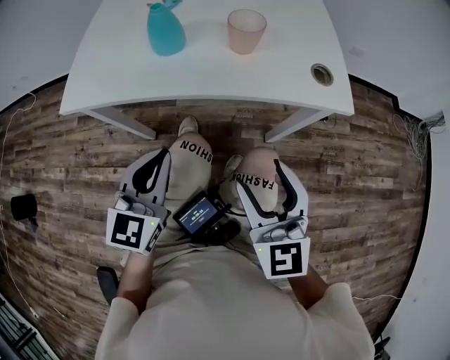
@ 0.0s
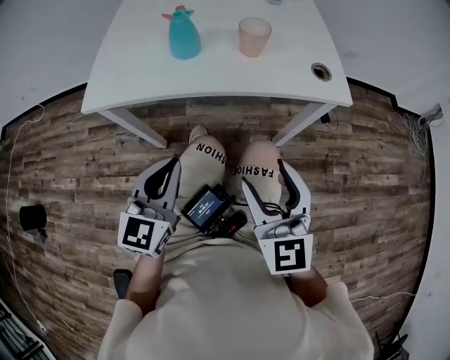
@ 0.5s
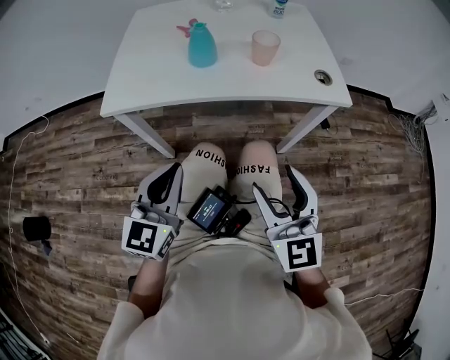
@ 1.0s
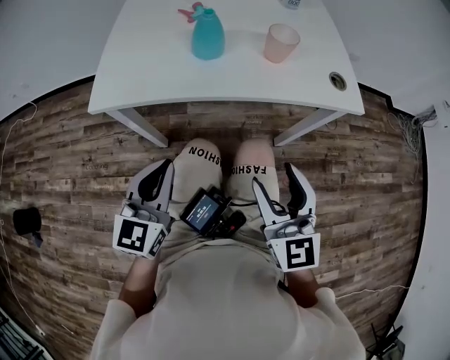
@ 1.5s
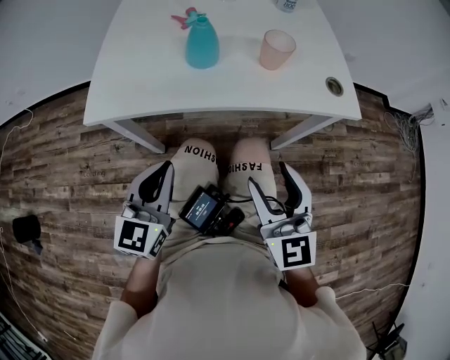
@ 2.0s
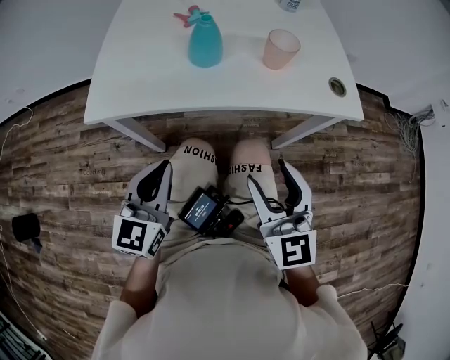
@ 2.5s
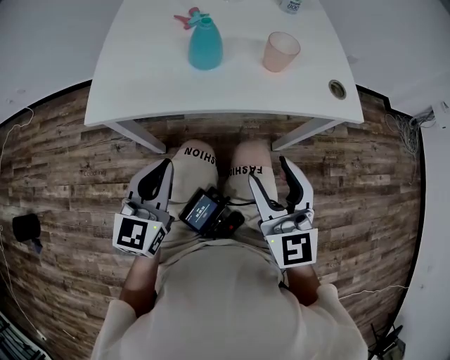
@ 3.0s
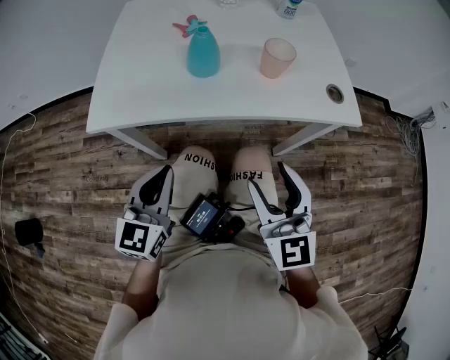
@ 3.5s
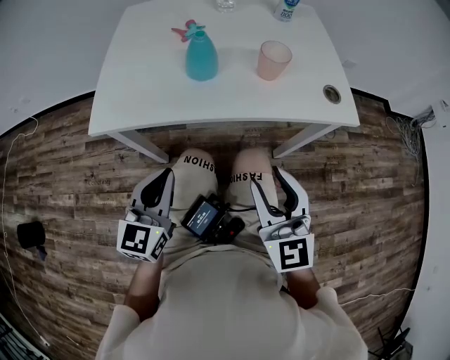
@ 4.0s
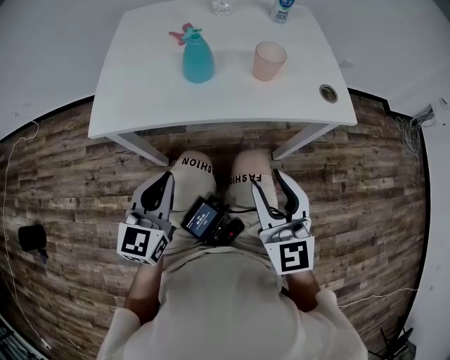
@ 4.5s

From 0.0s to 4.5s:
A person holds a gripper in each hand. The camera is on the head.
From 0.0s to 2.0s: The grippers both shift to the left by about 10 cm.
From 2.0s to 4.5s: The grippers move only a little.

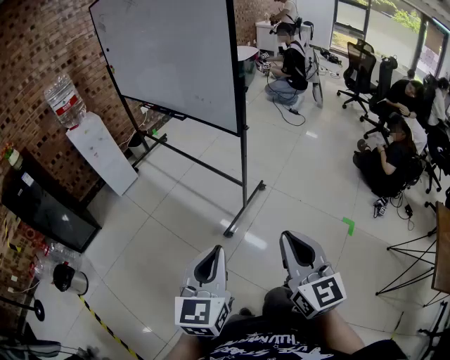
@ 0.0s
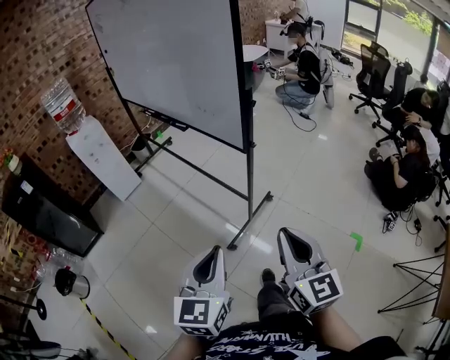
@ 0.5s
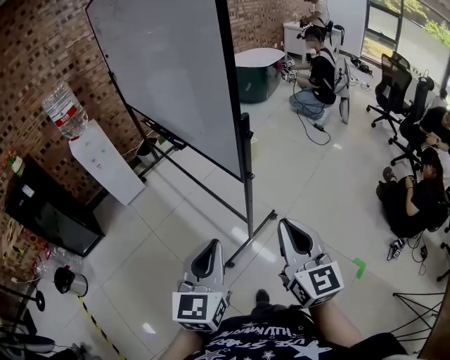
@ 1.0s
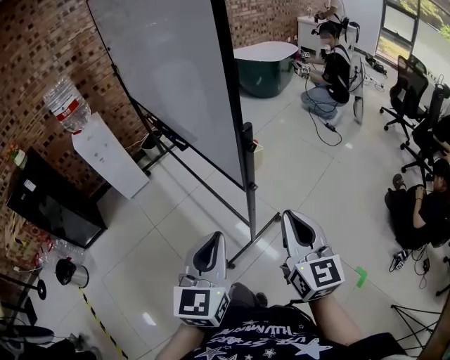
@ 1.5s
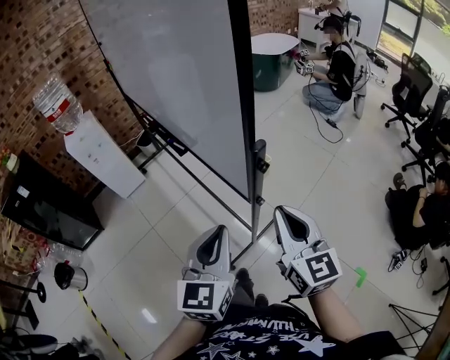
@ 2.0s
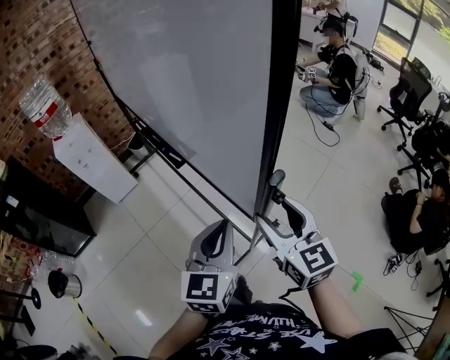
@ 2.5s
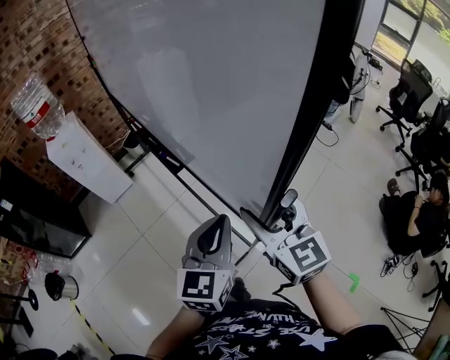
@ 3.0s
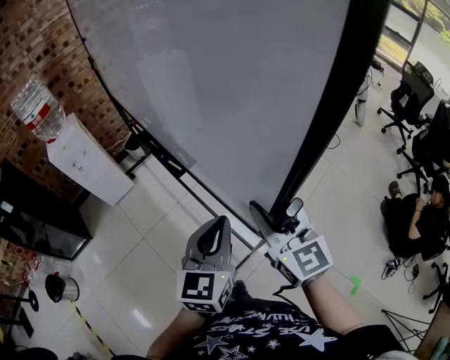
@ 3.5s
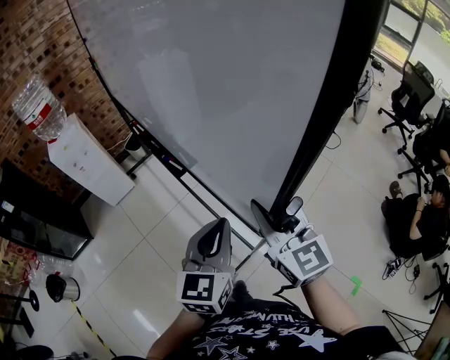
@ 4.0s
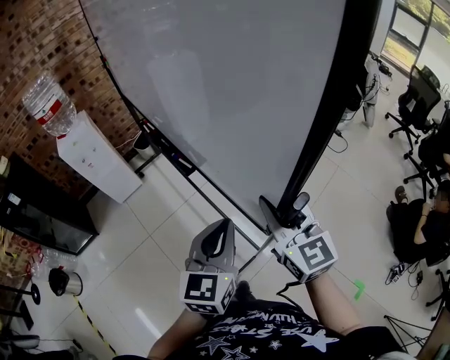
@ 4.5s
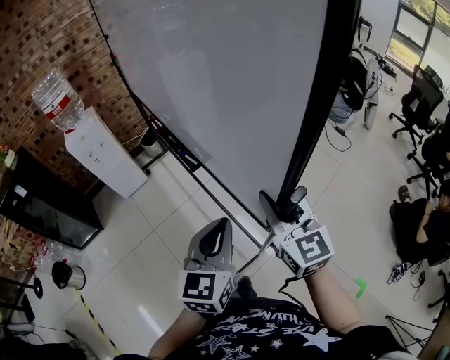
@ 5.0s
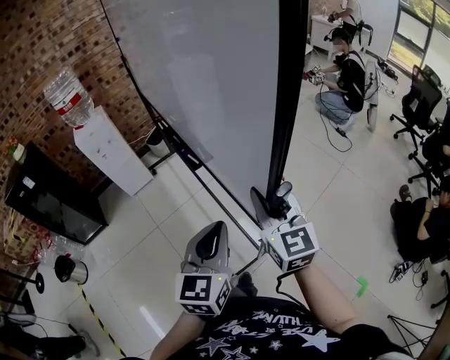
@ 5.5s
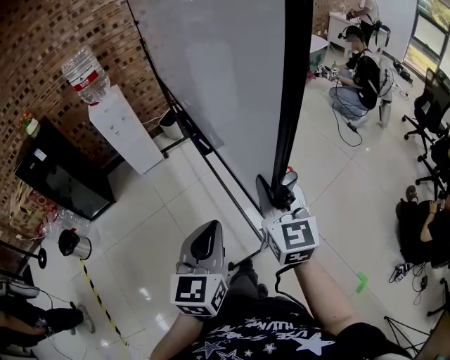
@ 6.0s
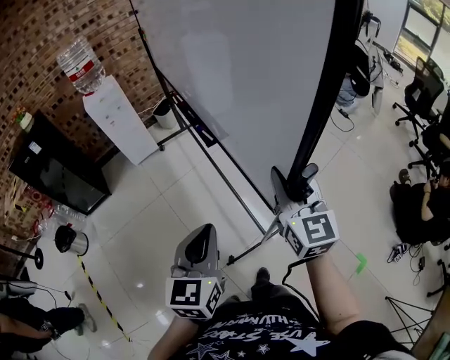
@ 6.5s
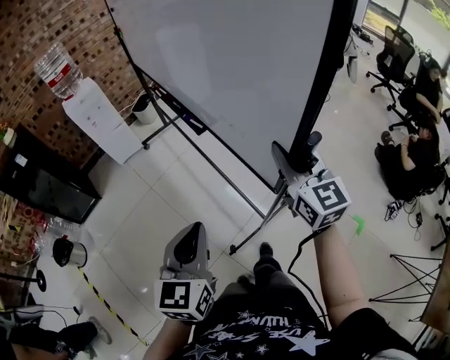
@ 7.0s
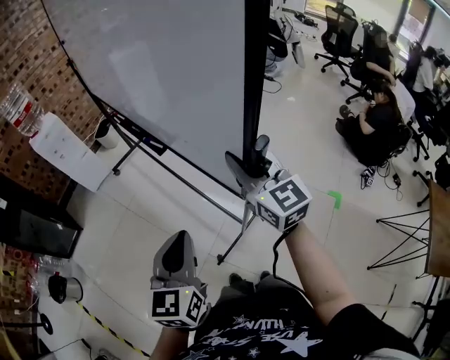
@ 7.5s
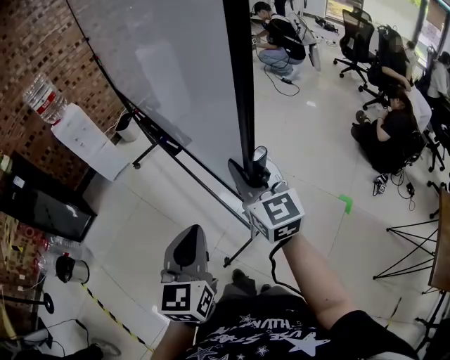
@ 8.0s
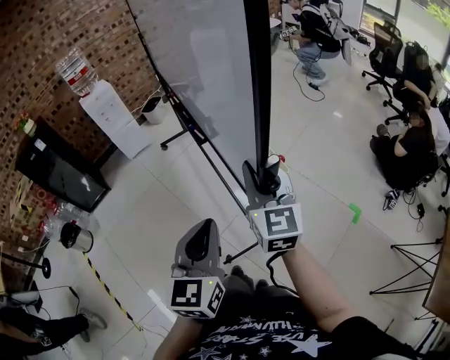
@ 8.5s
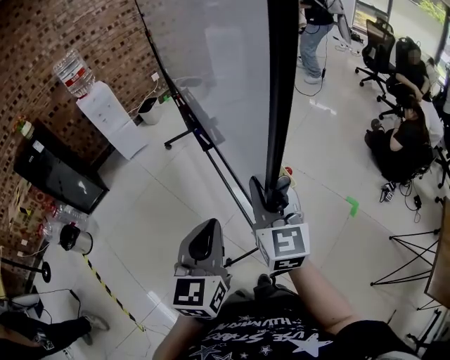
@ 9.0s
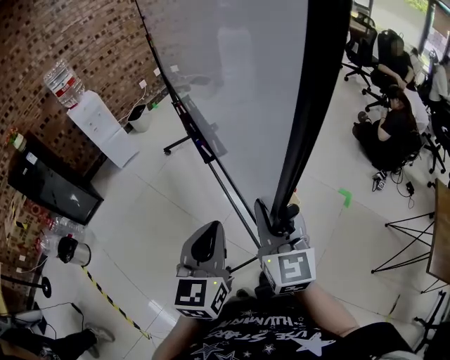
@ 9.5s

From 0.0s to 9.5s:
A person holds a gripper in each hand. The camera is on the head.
From 0.0s to 2.0s: Both grippers travel together forward, approximately 35 cm.
From 2.0s to 4.0s: The right gripper is displaced forward and to the left by approximately 15 cm, and opens and closes again. The left gripper heads forward, covering some 10 cm.
From 4.0s to 5.5s: The right gripper heads backward, covering some 5 cm, while the left gripper shifts approximately 10 cm backward.
From 5.5s to 7.5s: The two grippers go approximately 25 cm backward.
From 7.5s to 9.5s: The left gripper moves backward, some 15 cm. The right gripper heads backward, covering about 25 cm.

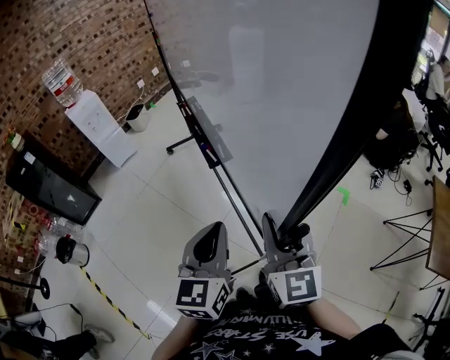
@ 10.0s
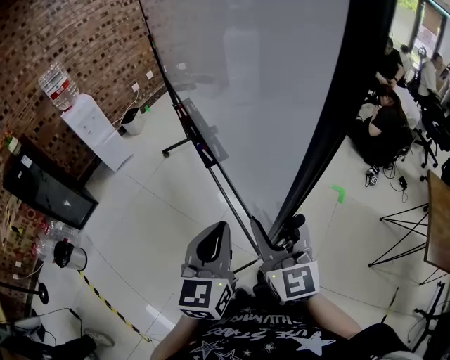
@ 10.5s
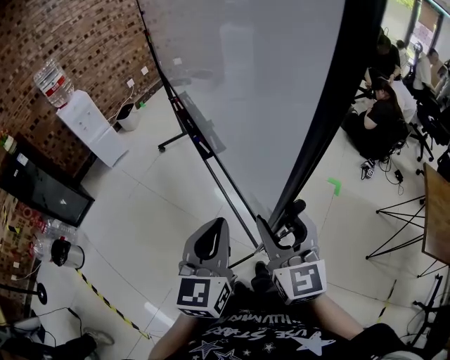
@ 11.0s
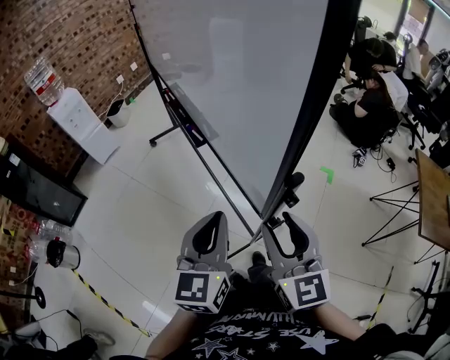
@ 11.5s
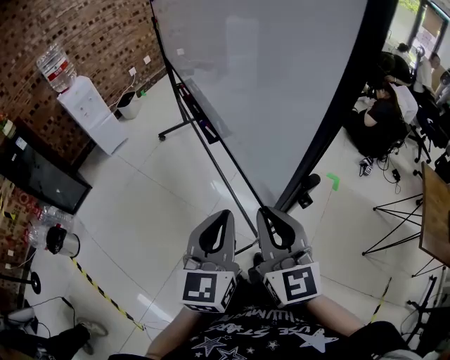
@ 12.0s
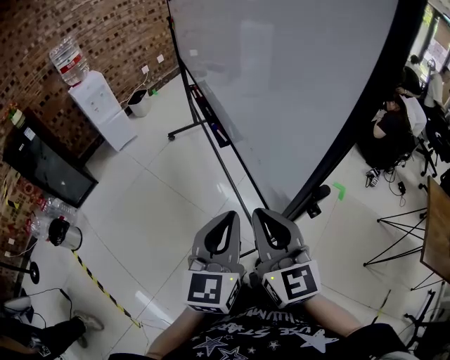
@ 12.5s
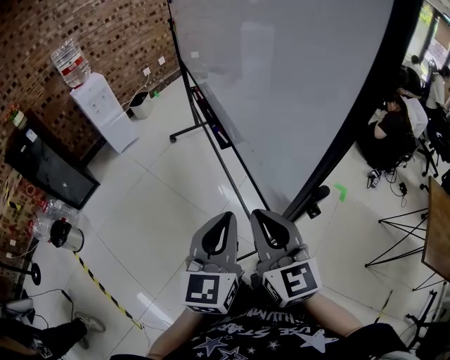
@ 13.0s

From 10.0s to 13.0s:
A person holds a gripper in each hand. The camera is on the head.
From 10.0s to 11.5s: The right gripper goes approximately 10 cm backward.
From 11.5s to 13.0s: The right gripper goes roughly 5 cm to the left, and closes.

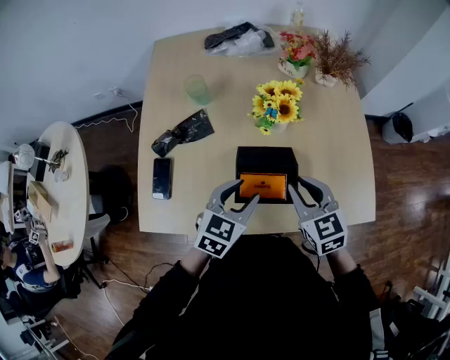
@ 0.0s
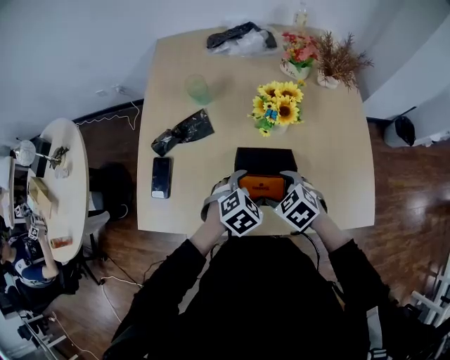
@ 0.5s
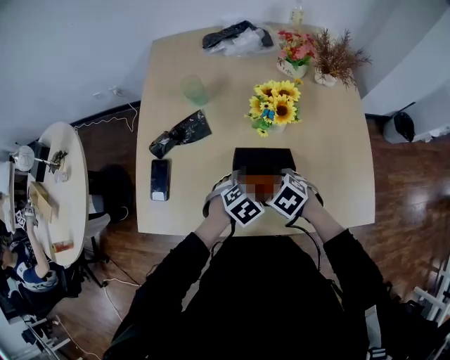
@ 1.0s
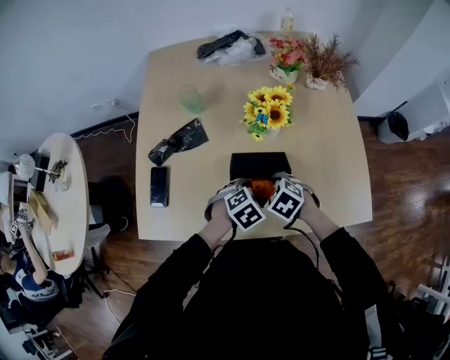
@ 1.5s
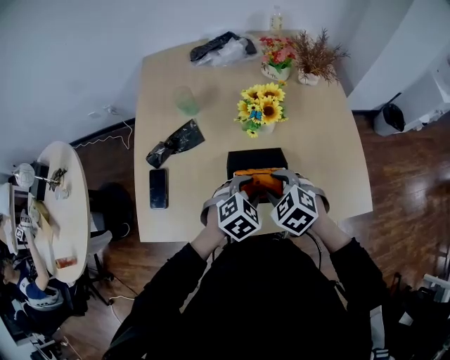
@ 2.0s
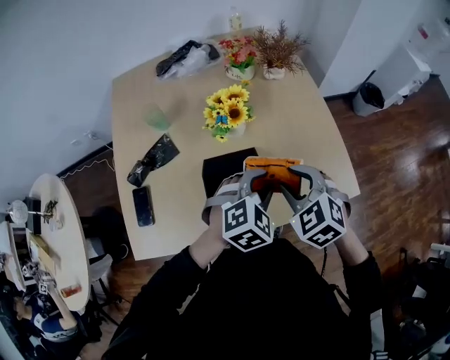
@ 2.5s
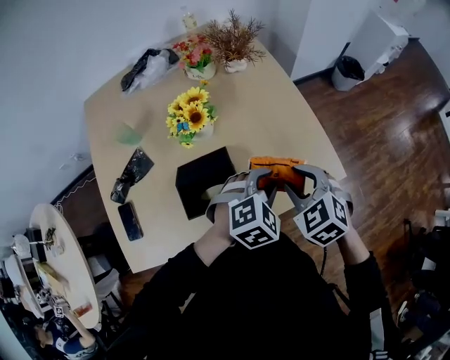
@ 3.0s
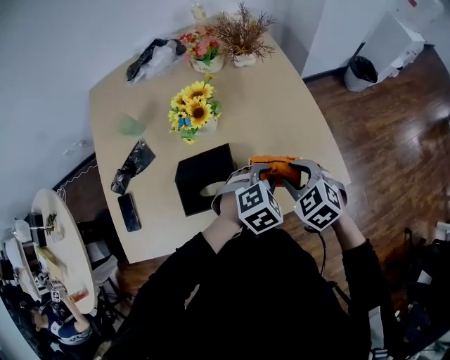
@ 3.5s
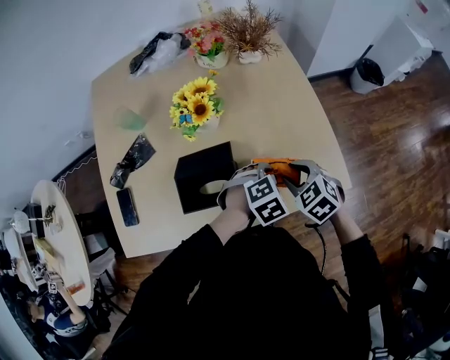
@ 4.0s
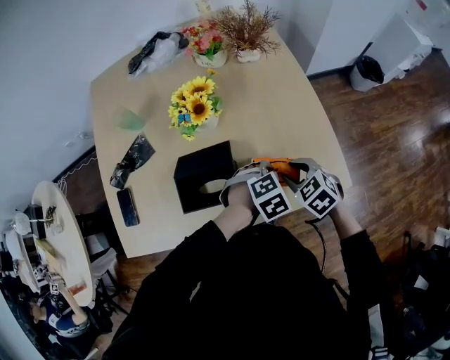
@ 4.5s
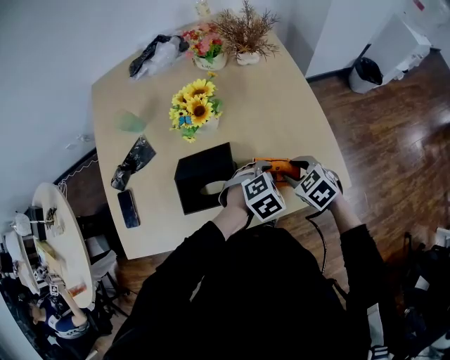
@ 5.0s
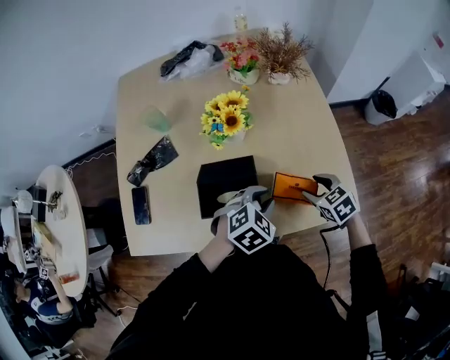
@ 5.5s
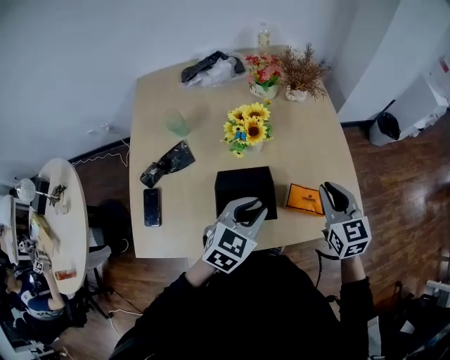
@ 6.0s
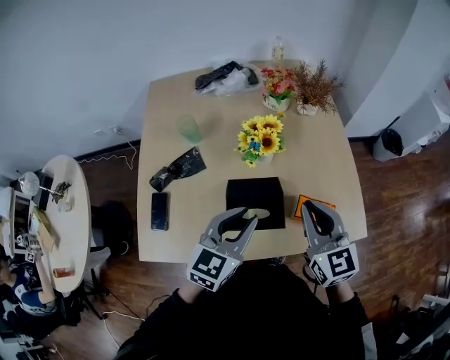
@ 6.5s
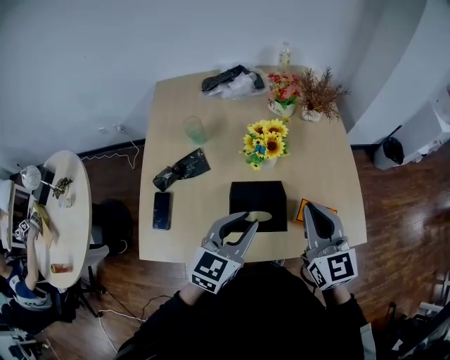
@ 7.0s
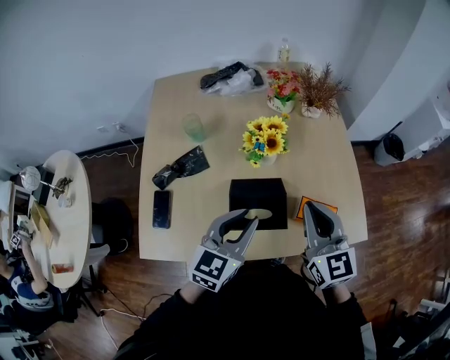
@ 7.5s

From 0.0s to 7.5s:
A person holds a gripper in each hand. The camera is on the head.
From 0.0s to 2.0s: The two grippers go about 5 cm downward. The left gripper swivels roughly 30 degrees, and opens, then closes again. Meanwhile the right gripper changes its angle by approximately 30 degrees, and opens, then closes once more.
From 2.0s to 4.0s: The two grippers go some 20 cm to the right. The left gripper swivels roughly 20 degrees.
From 4.0s to 5.5s: The left gripper goes approximately 10 cm to the left and upward.
From 5.5s to 7.5s: The right gripper moves upward and to the left, about 30 cm, tips its fingers upward by about 40 degrees, and closes. The left gripper travels to the left and upward by about 20 cm, and tips its fingers upward by about 30 degrees.

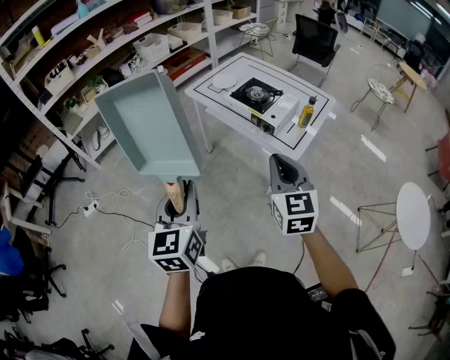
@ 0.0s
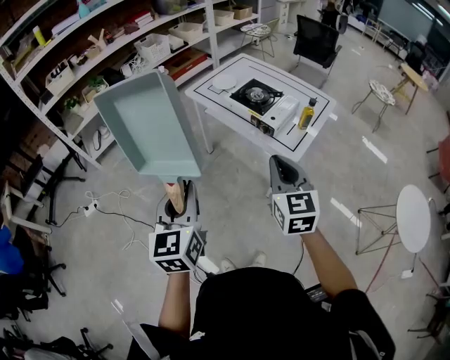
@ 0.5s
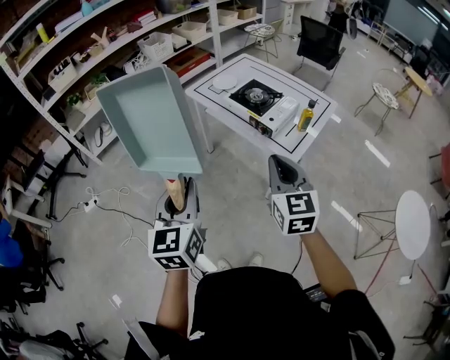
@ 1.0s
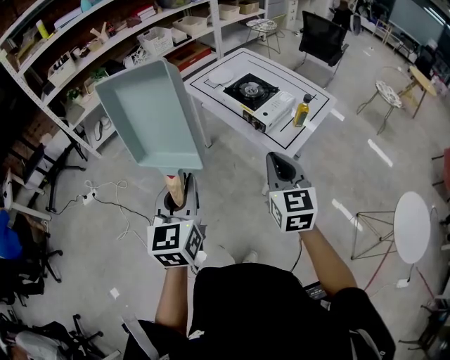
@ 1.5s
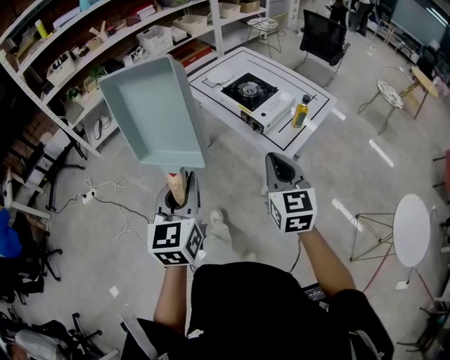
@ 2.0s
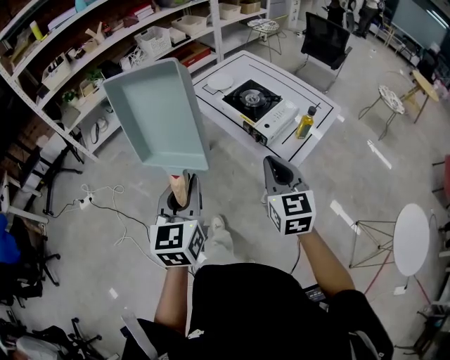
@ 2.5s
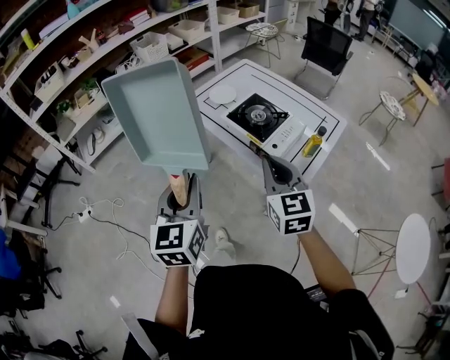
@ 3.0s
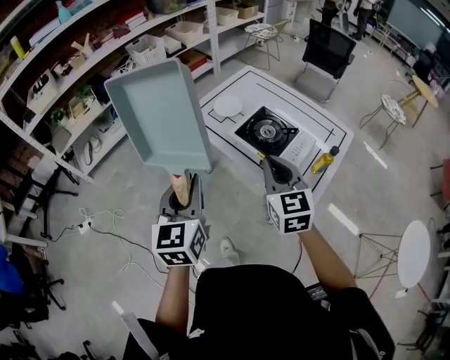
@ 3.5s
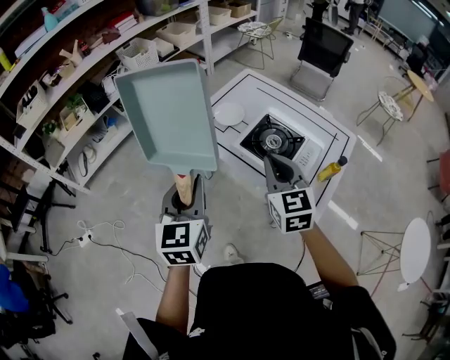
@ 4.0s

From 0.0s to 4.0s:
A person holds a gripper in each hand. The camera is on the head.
From 0.0s to 2.0s: The grippers both shift to the right by some 10 cm.
From 2.0s to 4.0s: Both grippers move forward, roughly 35 cm.
